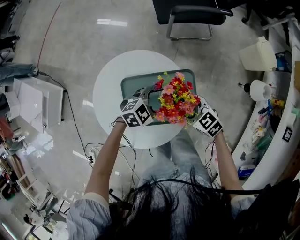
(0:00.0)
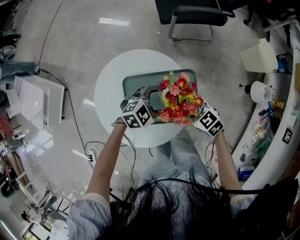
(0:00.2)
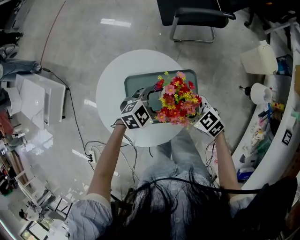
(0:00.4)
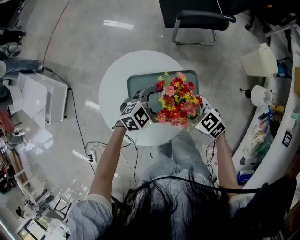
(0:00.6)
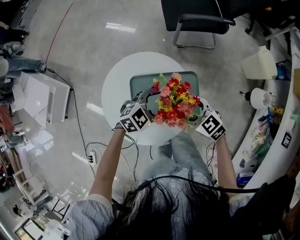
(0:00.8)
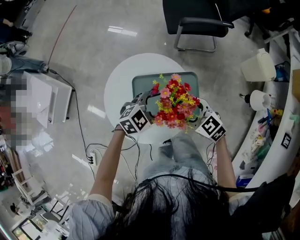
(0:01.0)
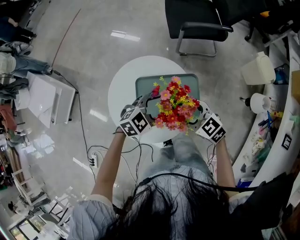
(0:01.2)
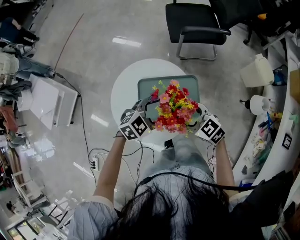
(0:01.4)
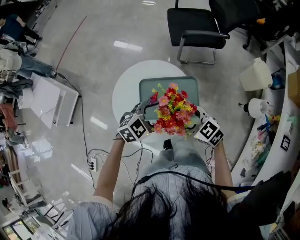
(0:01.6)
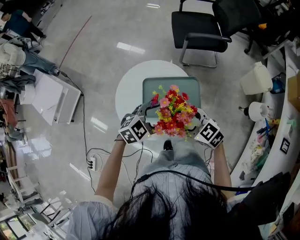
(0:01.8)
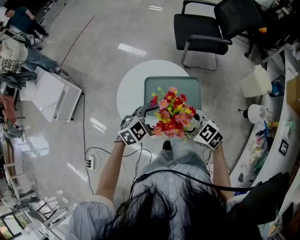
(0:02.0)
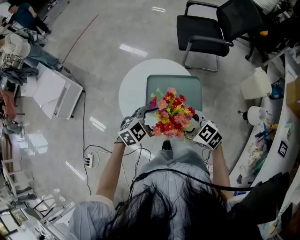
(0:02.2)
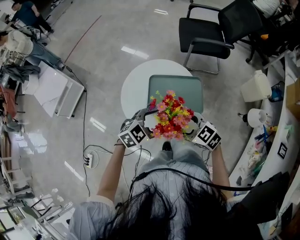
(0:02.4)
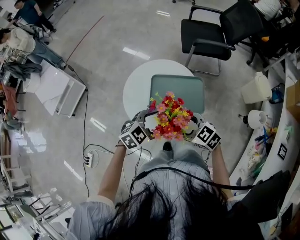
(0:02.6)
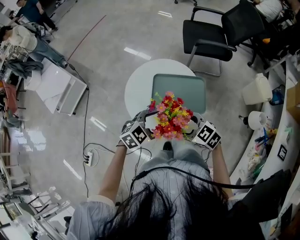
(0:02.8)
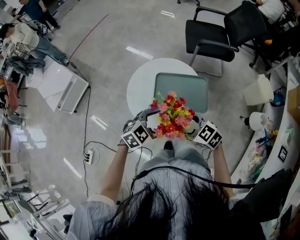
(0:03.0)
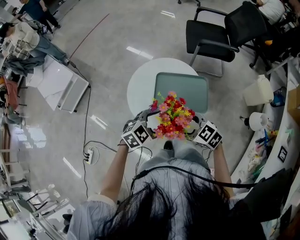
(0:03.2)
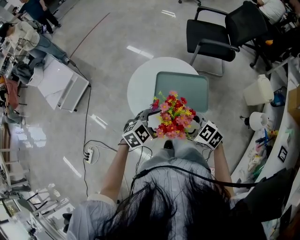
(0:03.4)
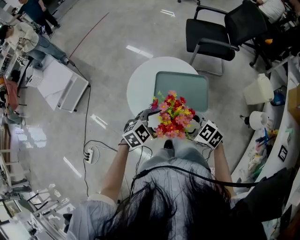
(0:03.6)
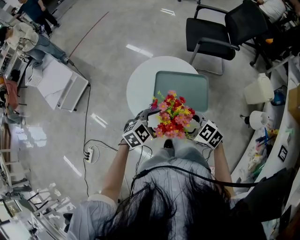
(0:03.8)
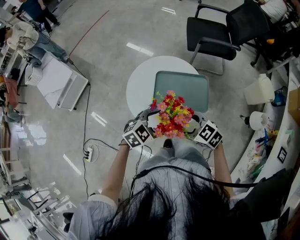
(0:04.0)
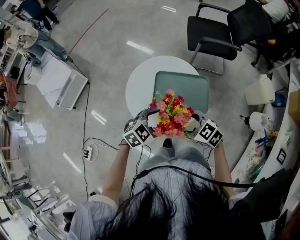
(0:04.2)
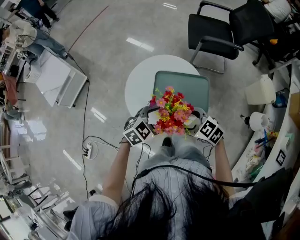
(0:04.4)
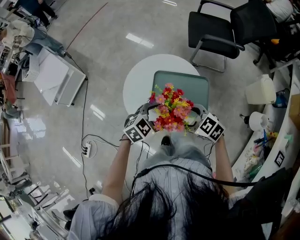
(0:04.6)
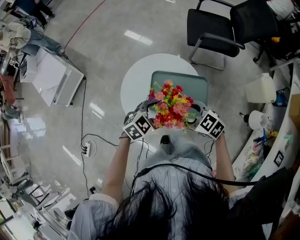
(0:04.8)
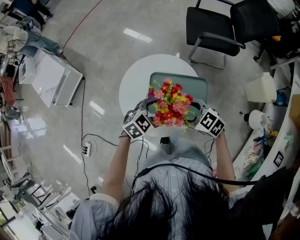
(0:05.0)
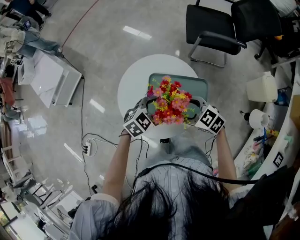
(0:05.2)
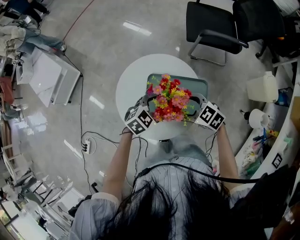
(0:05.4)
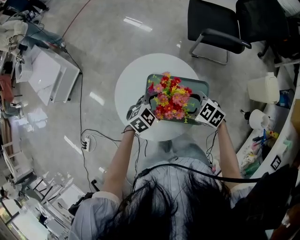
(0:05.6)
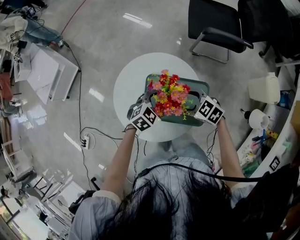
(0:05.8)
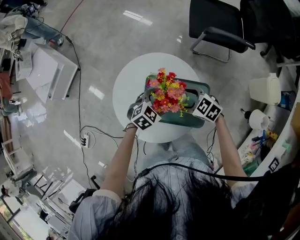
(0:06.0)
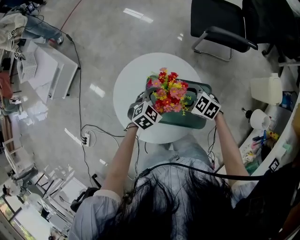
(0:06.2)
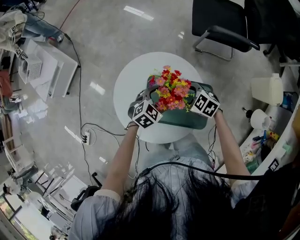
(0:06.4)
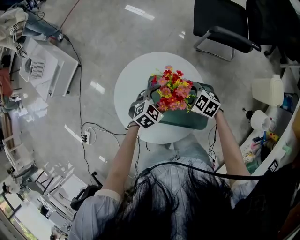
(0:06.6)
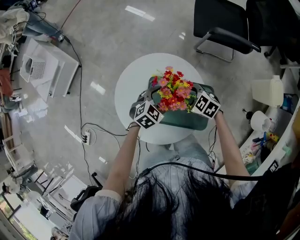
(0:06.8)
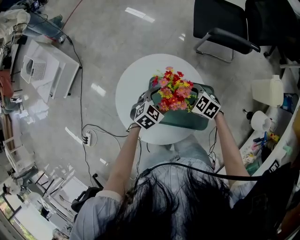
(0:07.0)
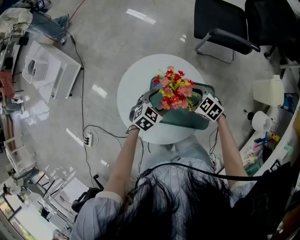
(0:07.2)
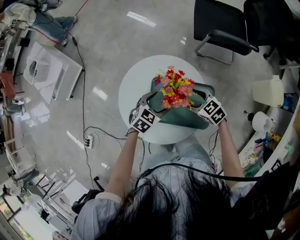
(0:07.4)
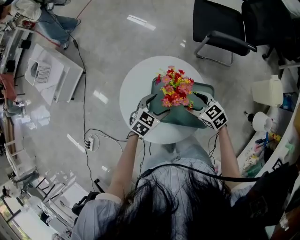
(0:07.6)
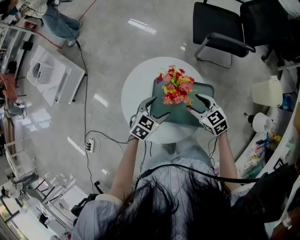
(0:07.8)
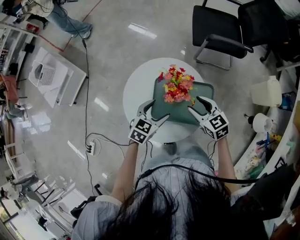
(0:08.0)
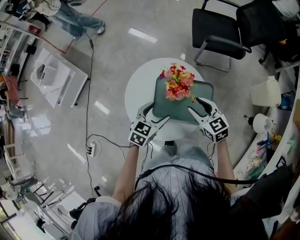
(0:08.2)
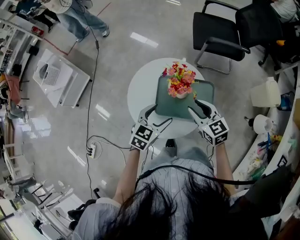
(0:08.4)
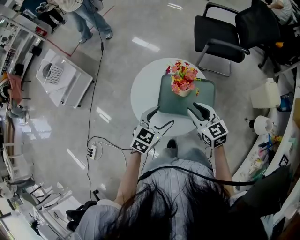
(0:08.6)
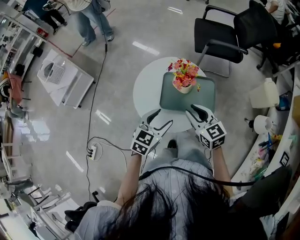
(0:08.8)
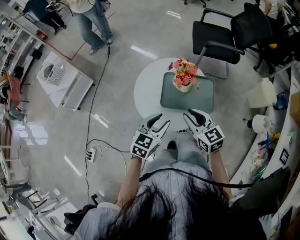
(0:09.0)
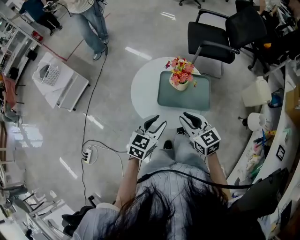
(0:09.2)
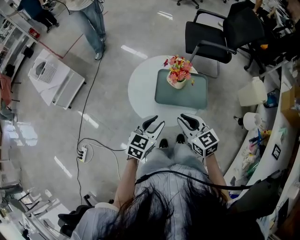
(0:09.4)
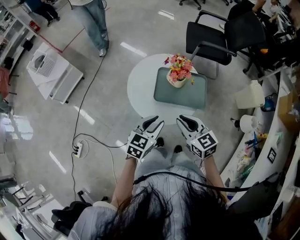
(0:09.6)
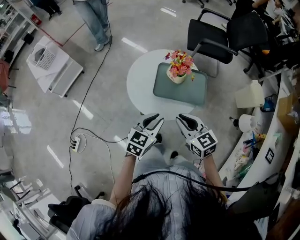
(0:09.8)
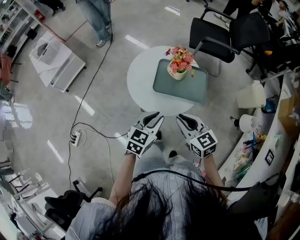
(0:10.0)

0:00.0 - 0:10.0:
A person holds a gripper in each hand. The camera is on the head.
0:00.0 - 0:01.4: The two grippers go about 10 cm upward.
0:01.4 - 0:02.8: The left gripper moves roughly 15 cm; the right gripper shifts by roughly 10 cm.
0:02.8 - 0:04.2: The two grippers keep their place.
0:04.2 - 0:05.8: The left gripper shifts by some 20 cm. The right gripper moves approximately 20 cm.
0:05.8 - 0:07.2: The right gripper moves downward, some 5 cm.
0:07.2 - 0:08.6: Both grippers move upward, some 15 cm. The right gripper changes its angle by some 40 degrees, and closes up. Meanwhile the left gripper changes its angle by roughly 20 degrees.
0:08.6 - 0:10.0: Both grippers travel together backward, roughly 15 cm. The left gripper closes.

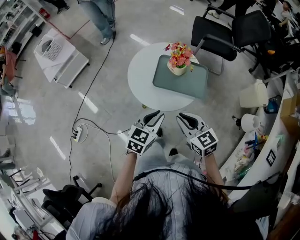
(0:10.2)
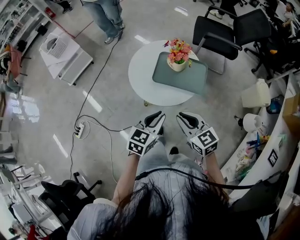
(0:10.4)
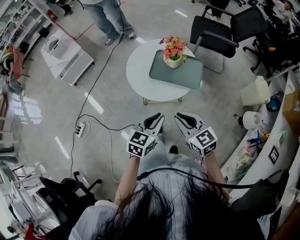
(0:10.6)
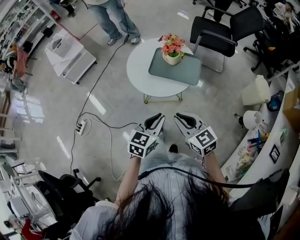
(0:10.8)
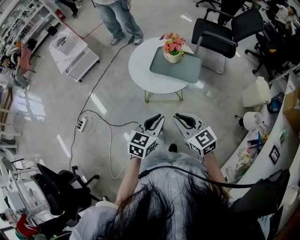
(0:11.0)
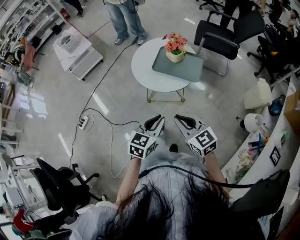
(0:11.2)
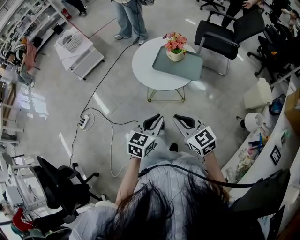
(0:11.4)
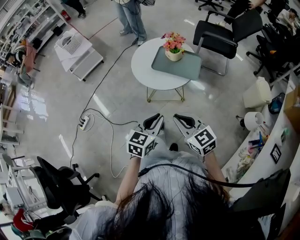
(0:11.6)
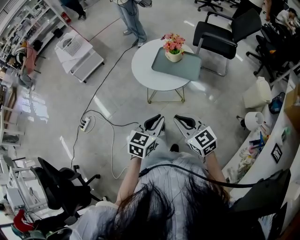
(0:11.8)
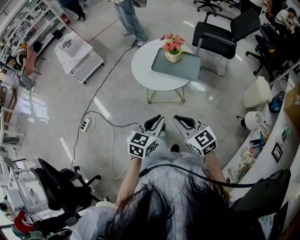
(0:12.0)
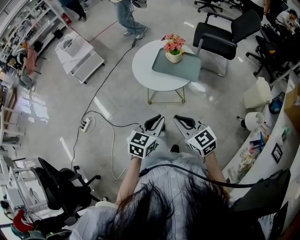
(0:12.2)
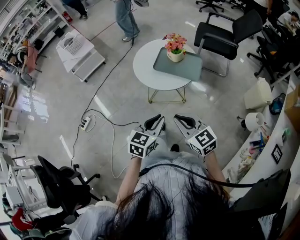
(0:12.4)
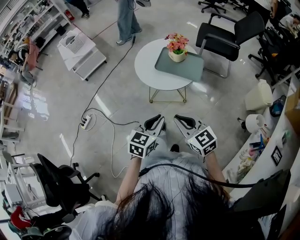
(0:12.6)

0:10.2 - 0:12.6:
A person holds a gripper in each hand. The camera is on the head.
0:10.2 - 0:11.4: Both grippers travel together backward, some 15 cm.
0:11.4 - 0:12.6: Neither gripper changes place.

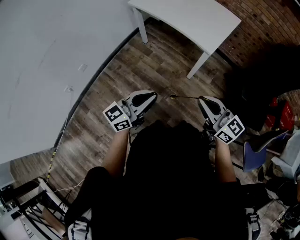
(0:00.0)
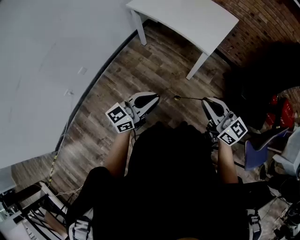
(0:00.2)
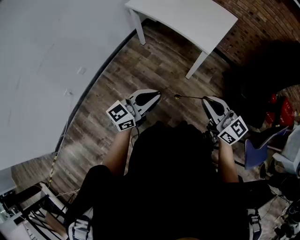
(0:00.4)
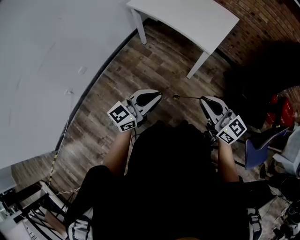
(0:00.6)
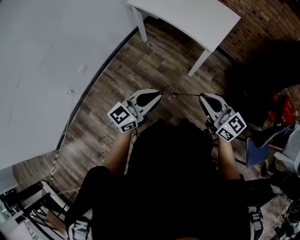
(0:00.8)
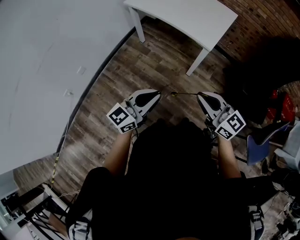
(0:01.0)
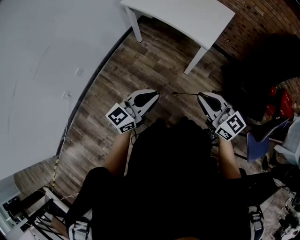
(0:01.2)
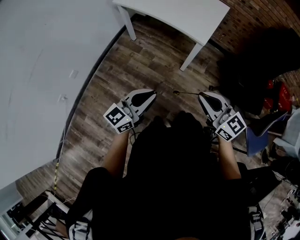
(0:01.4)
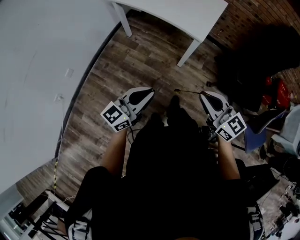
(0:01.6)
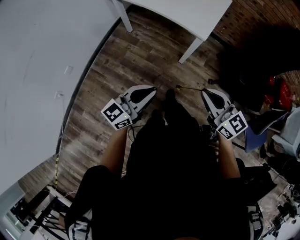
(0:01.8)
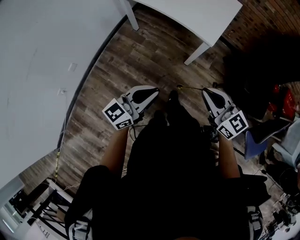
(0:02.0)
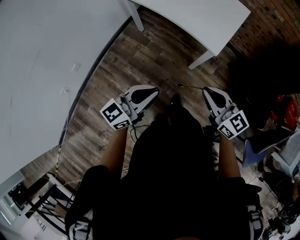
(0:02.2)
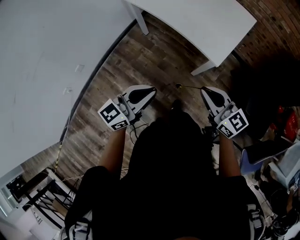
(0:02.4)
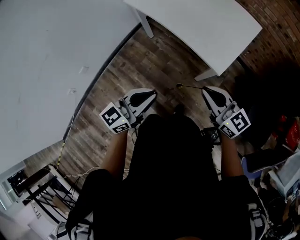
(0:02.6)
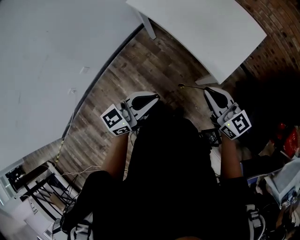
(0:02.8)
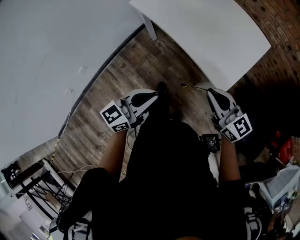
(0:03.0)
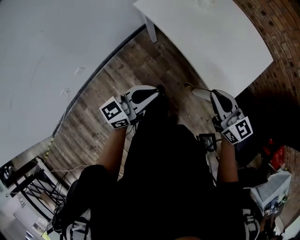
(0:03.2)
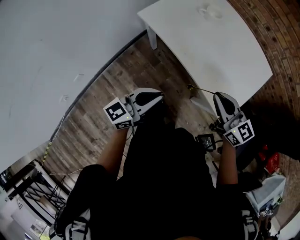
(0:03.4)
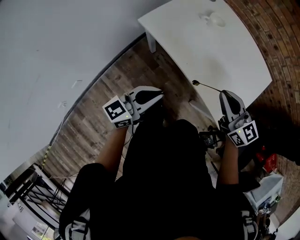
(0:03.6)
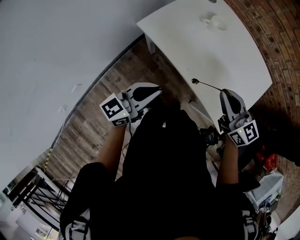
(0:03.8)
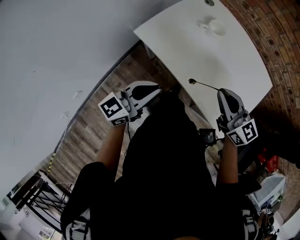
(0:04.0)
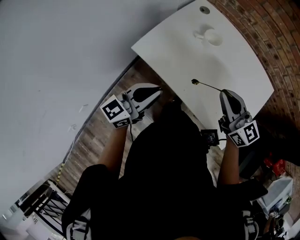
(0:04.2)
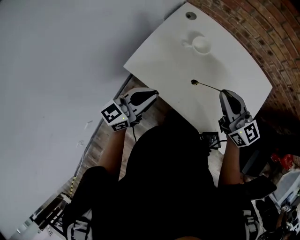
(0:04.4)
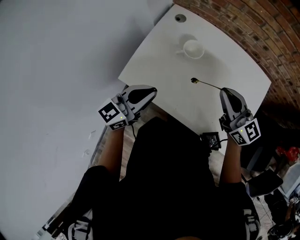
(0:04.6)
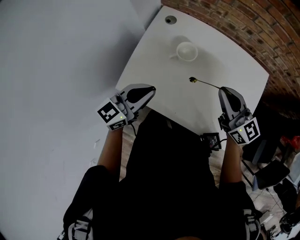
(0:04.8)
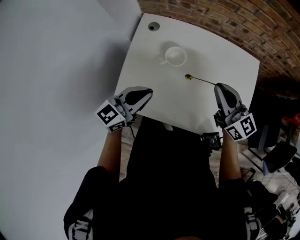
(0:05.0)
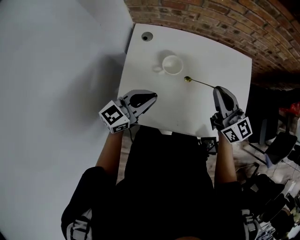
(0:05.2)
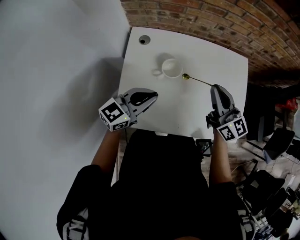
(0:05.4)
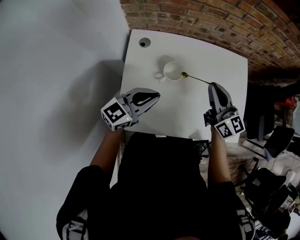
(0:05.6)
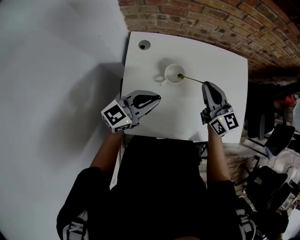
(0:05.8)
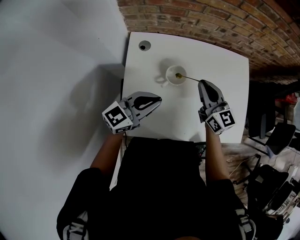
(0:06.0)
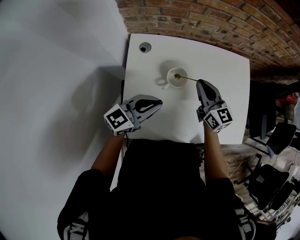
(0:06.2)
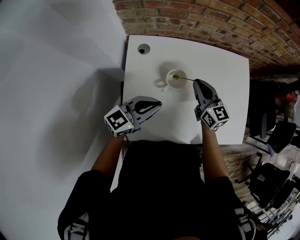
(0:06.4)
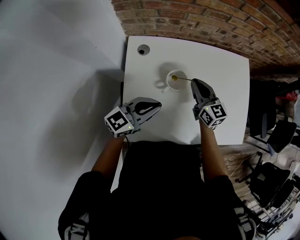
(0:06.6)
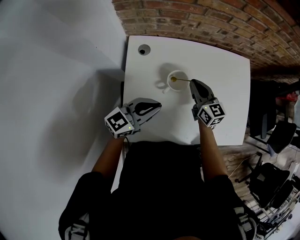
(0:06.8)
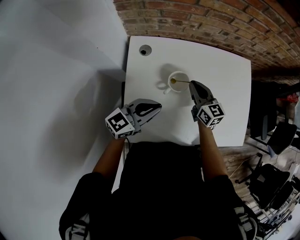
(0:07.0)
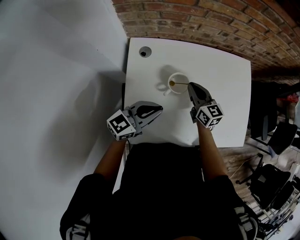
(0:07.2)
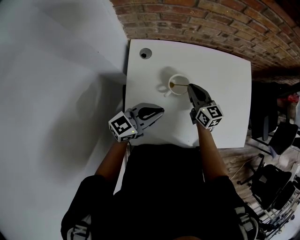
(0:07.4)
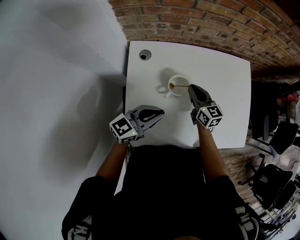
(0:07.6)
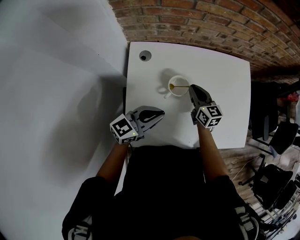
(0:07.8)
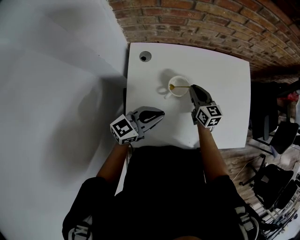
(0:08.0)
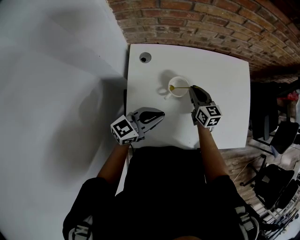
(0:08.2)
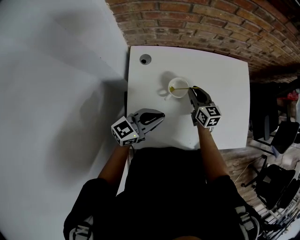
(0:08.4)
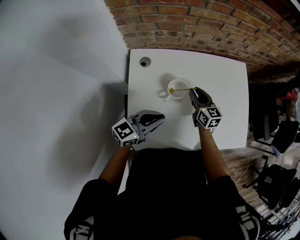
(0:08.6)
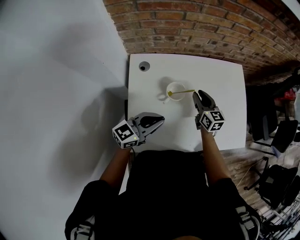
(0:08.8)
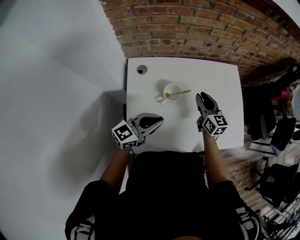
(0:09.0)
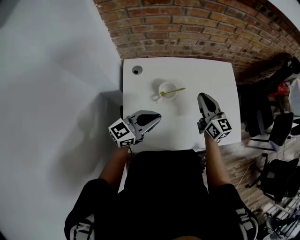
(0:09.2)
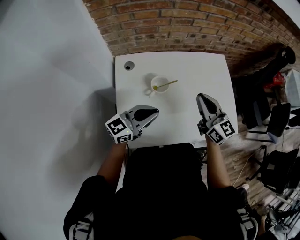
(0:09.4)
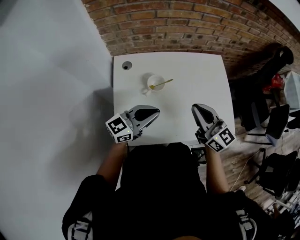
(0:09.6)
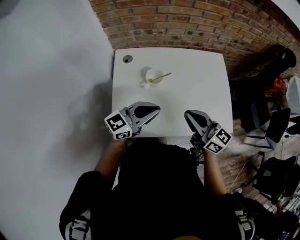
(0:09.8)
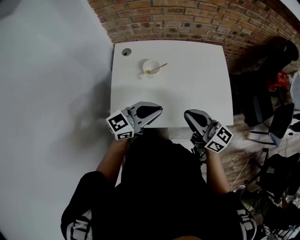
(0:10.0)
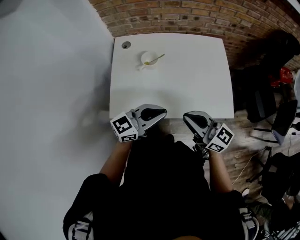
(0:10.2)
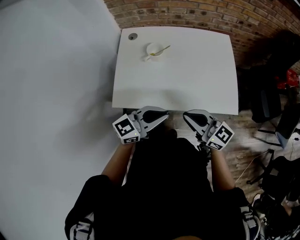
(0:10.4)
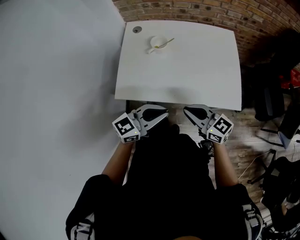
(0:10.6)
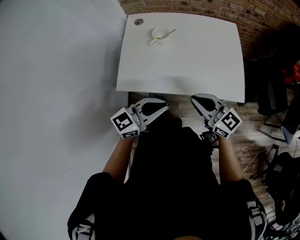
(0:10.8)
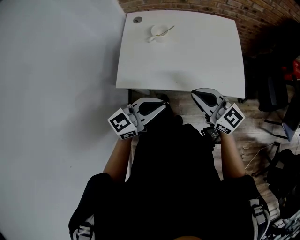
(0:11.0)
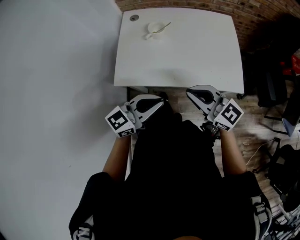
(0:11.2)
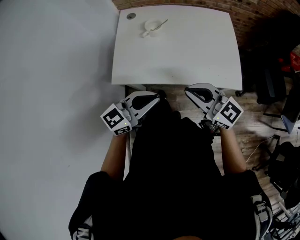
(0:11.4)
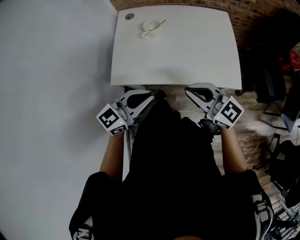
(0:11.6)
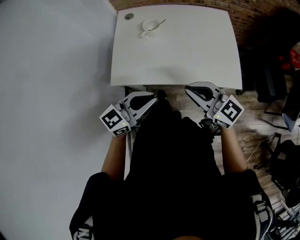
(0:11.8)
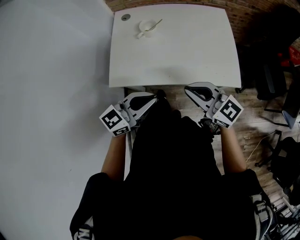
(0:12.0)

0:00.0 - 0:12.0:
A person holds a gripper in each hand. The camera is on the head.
0:00.0 - 0:01.6: There are only small adjustments of the grippers.
0:01.6 - 0:03.0: The two grippers go some 30 cm forward.
0:03.0 - 0:04.4: The two grippers go some 40 cm forward.
0:04.4 - 0:06.0: The right gripper moves about 15 cm, and turns by about 40 degrees; the left gripper shifts by some 20 cm, and rotates about 40 degrees.
0:06.0 - 0:07.6: The right gripper goes approximately 10 cm downward.
0:07.6 - 0:09.0: The right gripper moves to the right and upward, about 10 cm, and opens.
0:09.0 - 0:10.4: The right gripper travels backward by roughly 30 cm, turns by approximately 40 degrees, and closes its fingers, while the left gripper moves to the right and backward, some 25 cm.
0:10.4 - 0:12.0: The left gripper goes roughly 5 cm backward.
